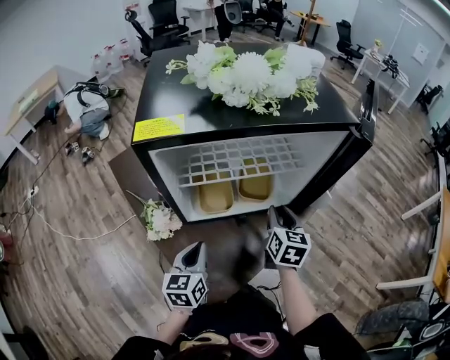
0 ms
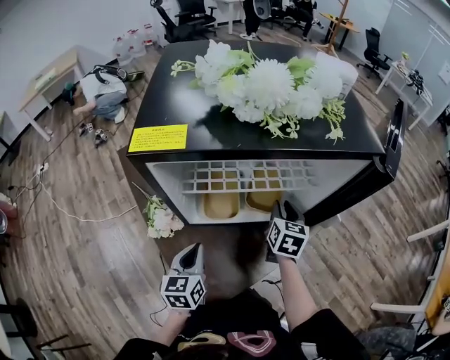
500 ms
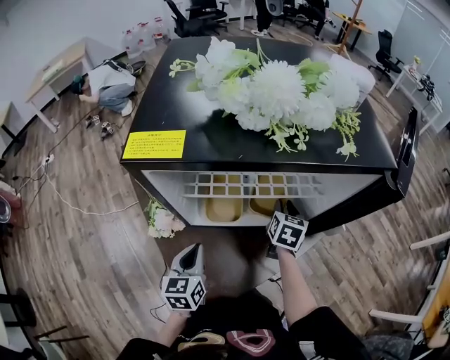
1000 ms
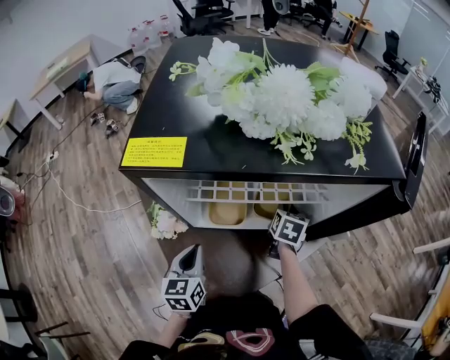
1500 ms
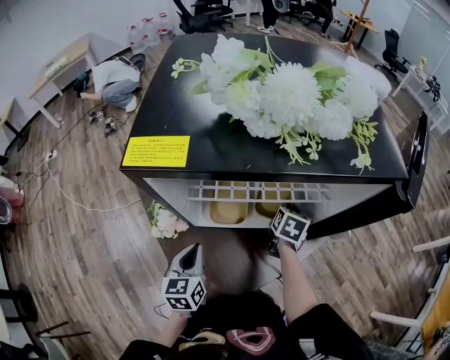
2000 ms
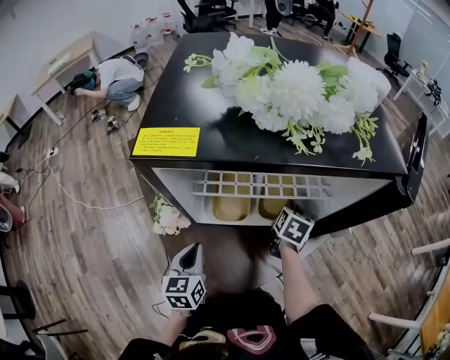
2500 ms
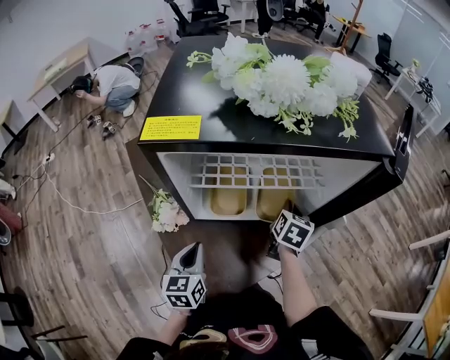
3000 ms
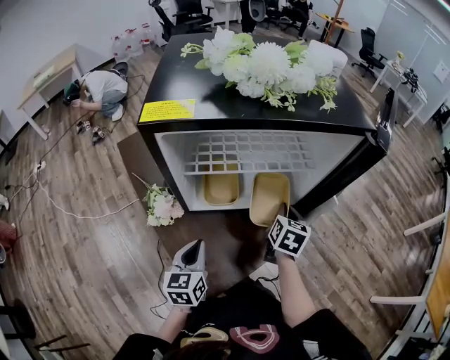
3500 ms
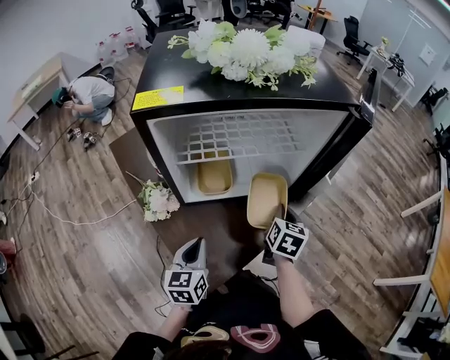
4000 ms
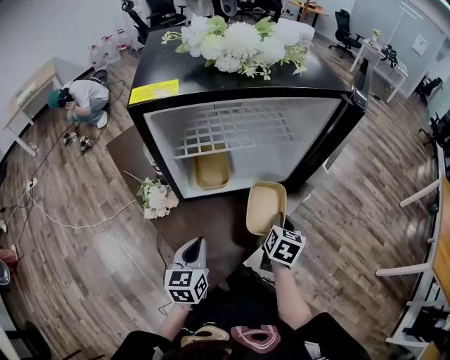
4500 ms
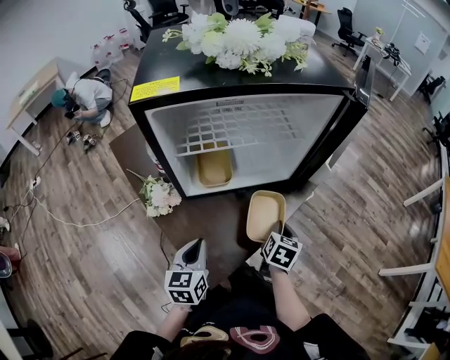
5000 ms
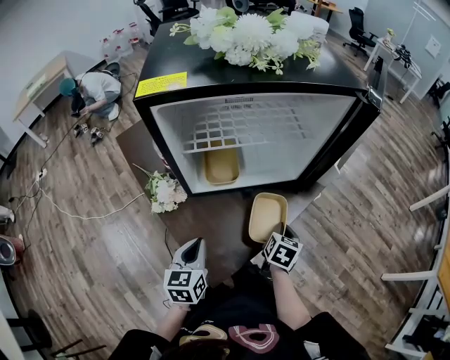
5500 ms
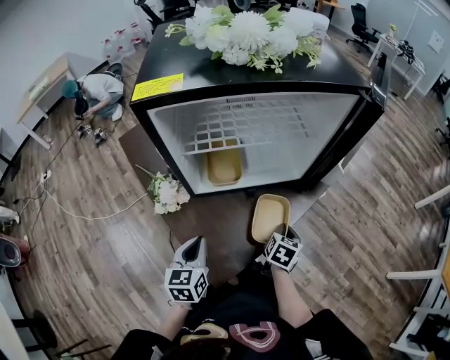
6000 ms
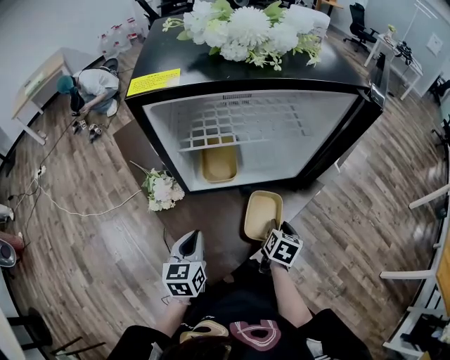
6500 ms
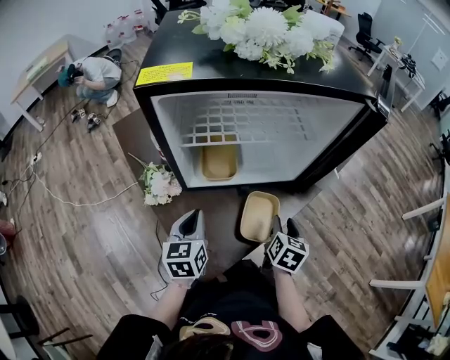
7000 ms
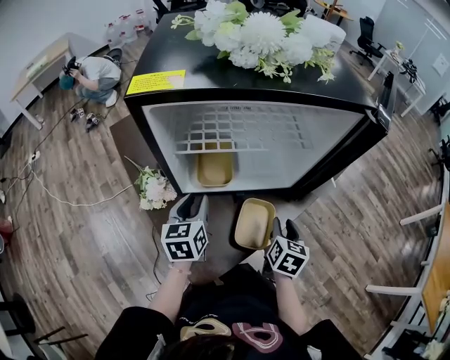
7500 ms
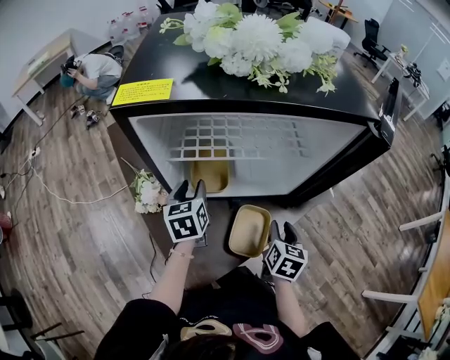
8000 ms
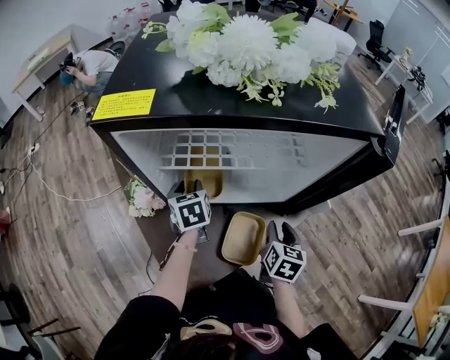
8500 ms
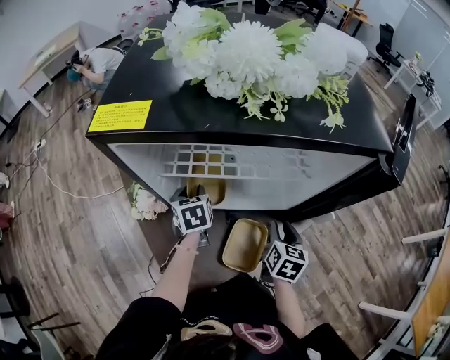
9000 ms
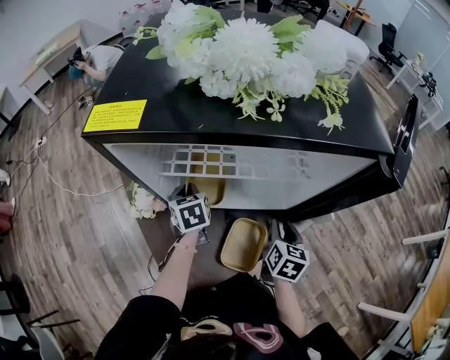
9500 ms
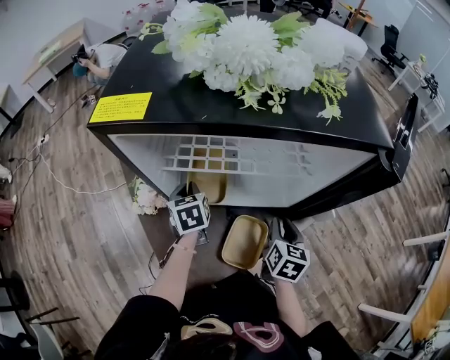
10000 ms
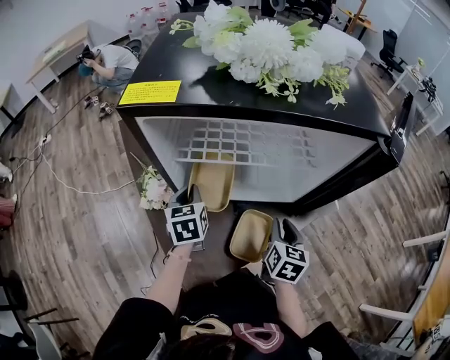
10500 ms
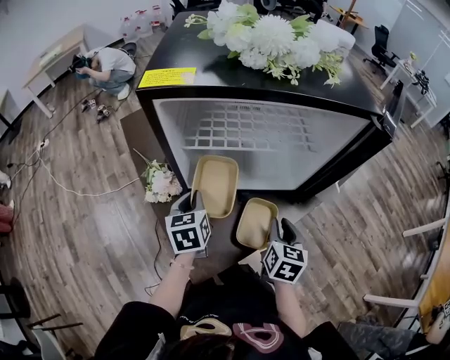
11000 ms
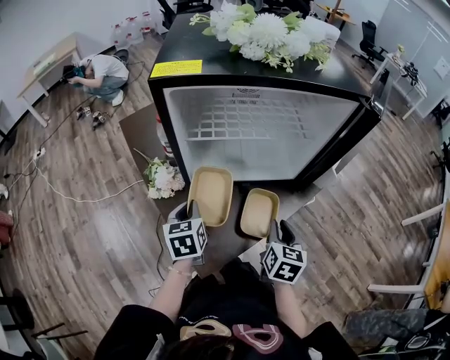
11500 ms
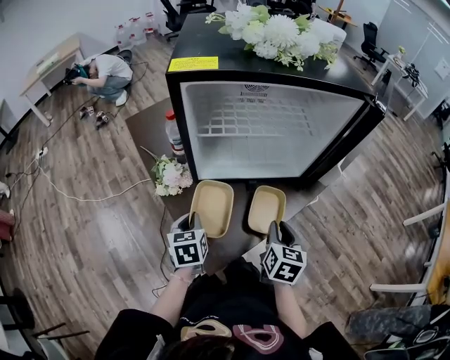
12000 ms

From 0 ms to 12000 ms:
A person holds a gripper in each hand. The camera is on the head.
From 0 ms to 2000 ms: The right gripper goes about 15 cm forward and downward, and closes.
From 2000 ms to 4000 ms: The left gripper travels backward by roughly 5 cm. Meanwhile the right gripper heads backward, covering some 15 cm.
From 4000 ms to 6000 ms: The right gripper shifts some 15 cm downward and backward.
From 6000 ms to 8000 ms: The left gripper travels forward by approximately 20 cm, and opens up, while the right gripper shifts roughly 10 cm upward and forward, and opens.
From 8000 ms to 10000 ms: The right gripper shifts roughly 5 cm forward. Meanwhile the left gripper shifts by approximately 5 cm, and closes its fingers.
From 10000 ms to 12000 ms: The right gripper heads backward and to the left, covering some 15 cm. Meanwhile the left gripper heads backward, covering roughly 20 cm.

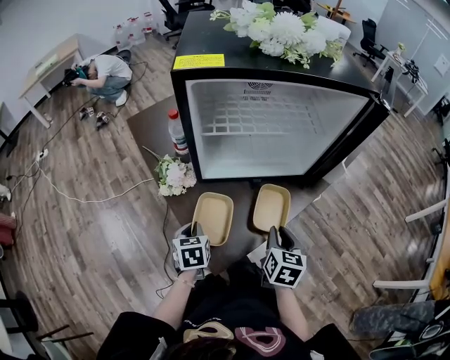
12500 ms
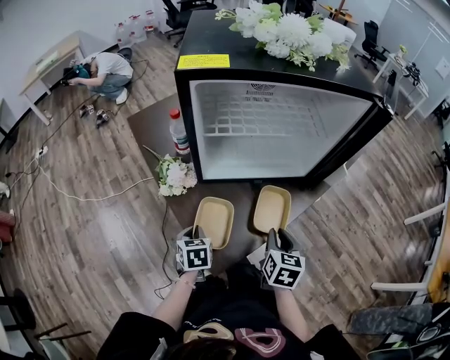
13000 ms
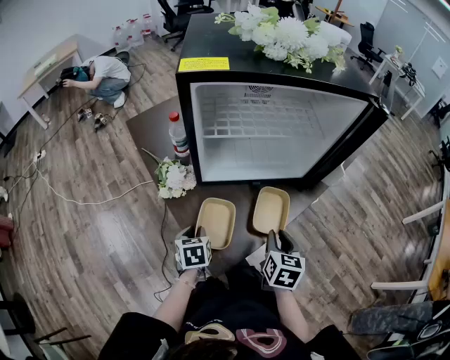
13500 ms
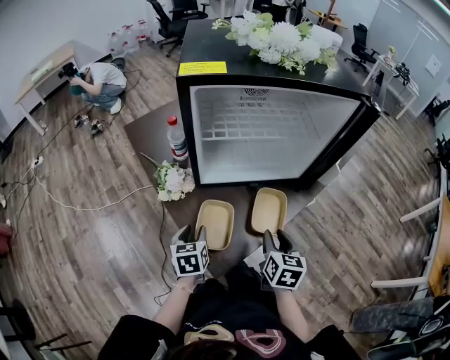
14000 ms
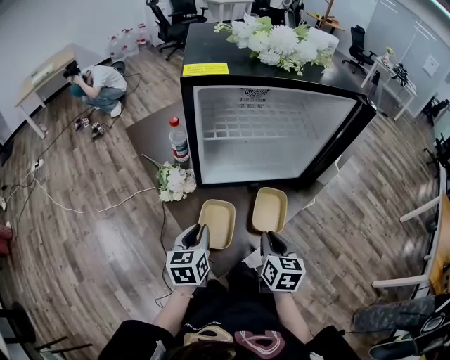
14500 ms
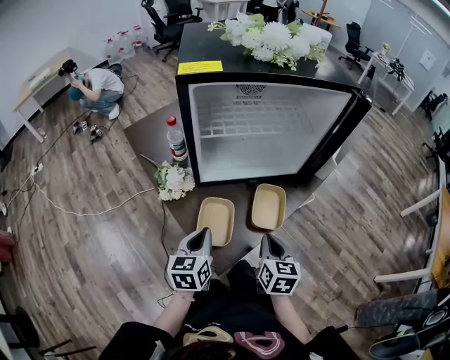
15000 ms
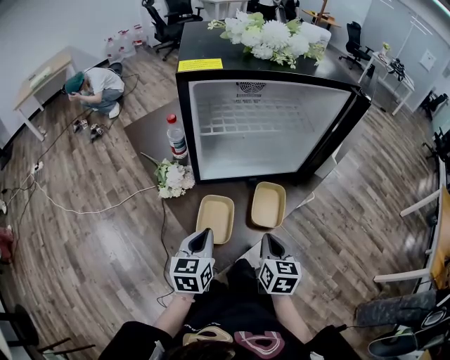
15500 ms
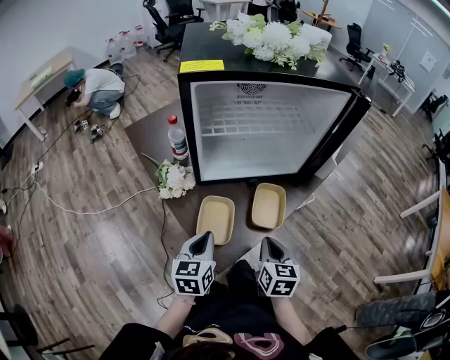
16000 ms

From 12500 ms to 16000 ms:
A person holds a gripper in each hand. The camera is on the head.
From 12500 ms to 14500 ms: The left gripper shifts some 10 cm upward, and rotates about 20 degrees.
From 14500 ms to 16000 ms: The grippers move only a little.

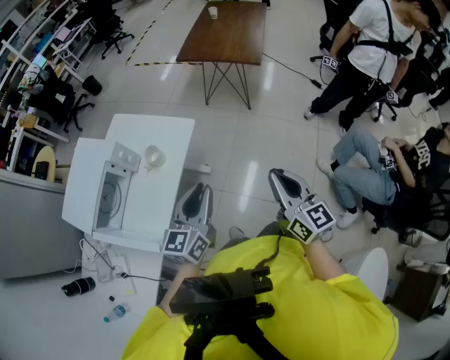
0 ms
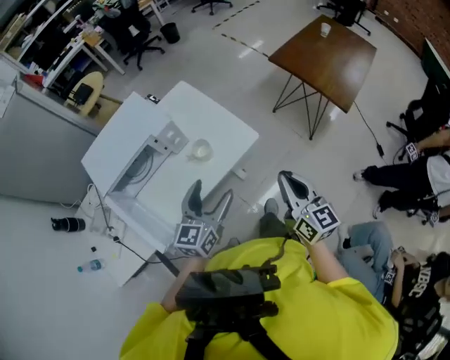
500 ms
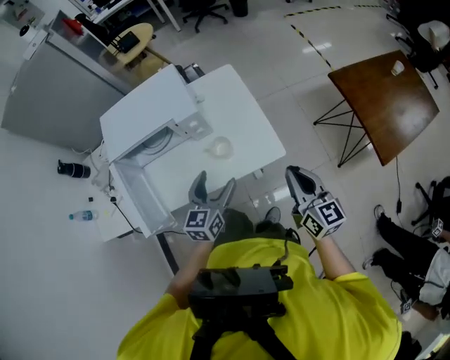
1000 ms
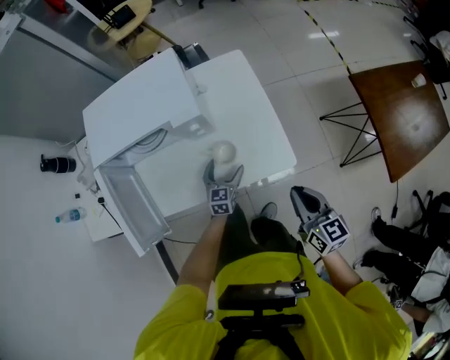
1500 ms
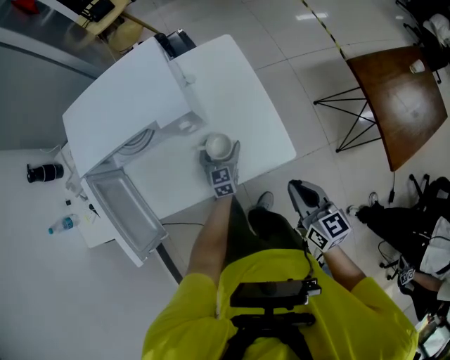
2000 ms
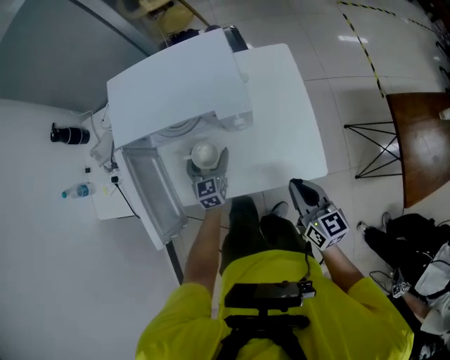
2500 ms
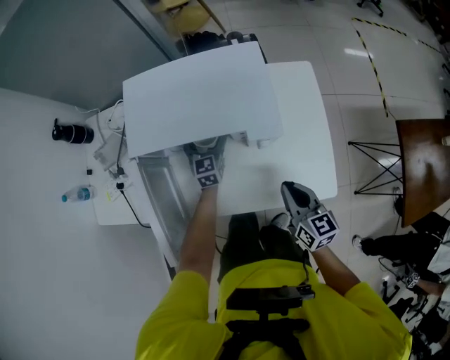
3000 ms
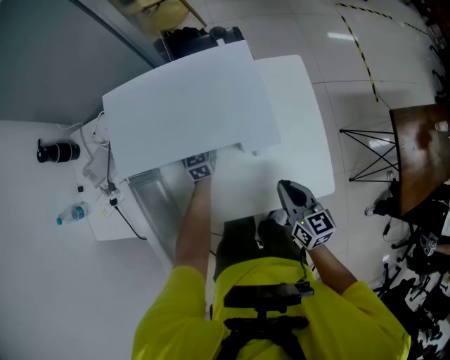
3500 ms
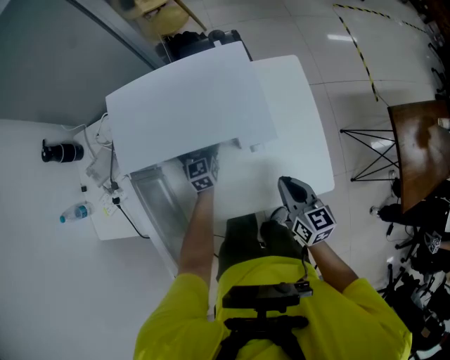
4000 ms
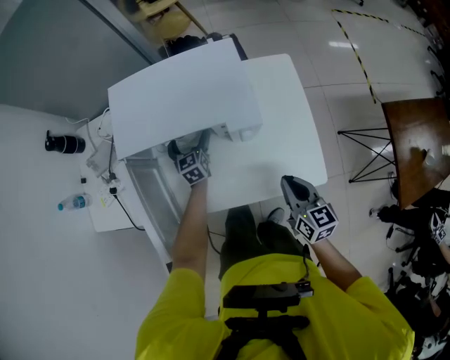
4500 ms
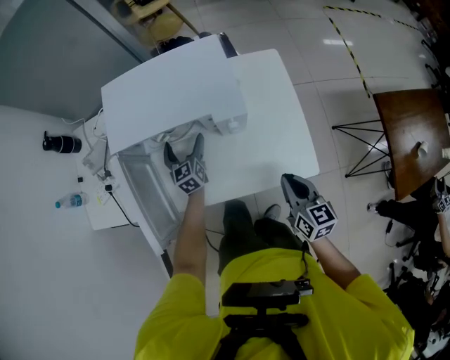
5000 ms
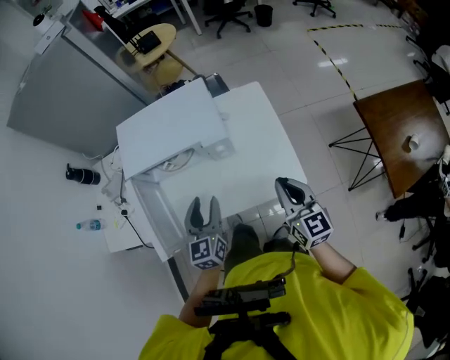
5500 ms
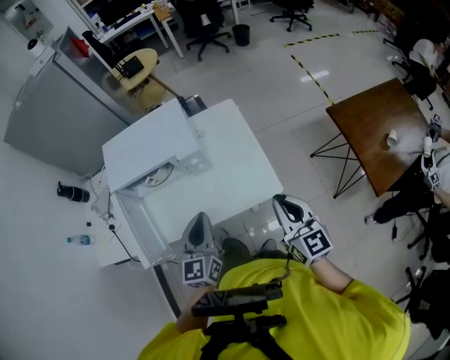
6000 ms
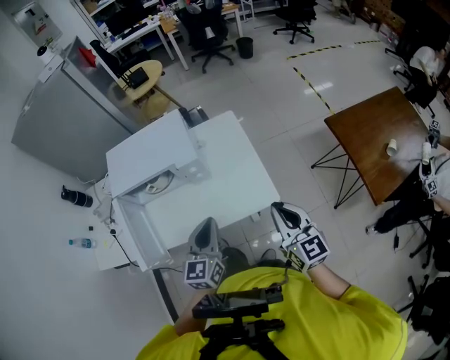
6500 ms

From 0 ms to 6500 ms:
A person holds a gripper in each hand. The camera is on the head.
From 0 ms to 2000 ms: The pair of grippers is taken some 40 cm. The right gripper turns by about 60 degrees, while the left gripper rotates about 70 degrees, and opens.
From 2000 ms to 4500 ms: The left gripper heads to the left and forward, covering about 30 cm, and turns by some 20 degrees, while the right gripper shifts approximately 15 cm forward and to the left.
From 4500 ms to 6500 ms: The right gripper is displaced upward, backward and to the right by roughly 25 cm, and rotates roughly 20 degrees, while the left gripper goes some 50 cm backward, upward and to the right, rotates approximately 30 degrees, and closes up.

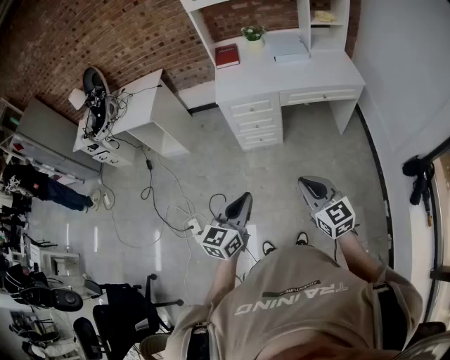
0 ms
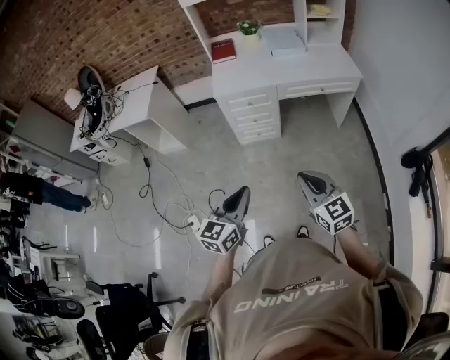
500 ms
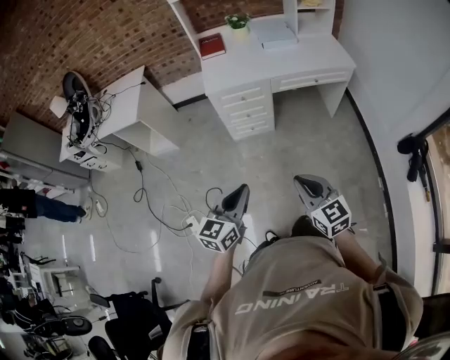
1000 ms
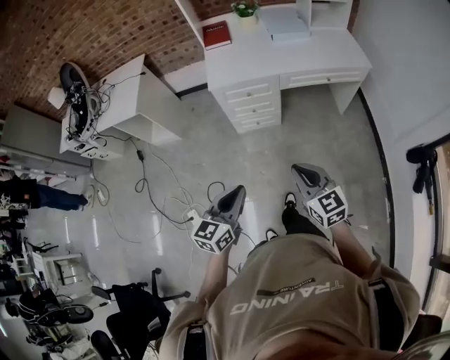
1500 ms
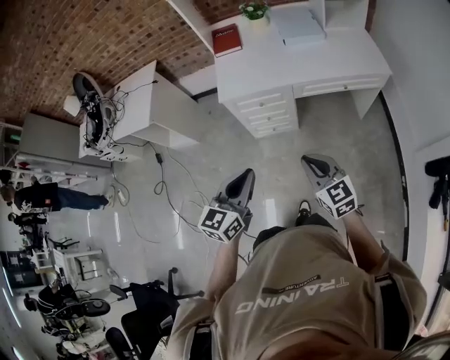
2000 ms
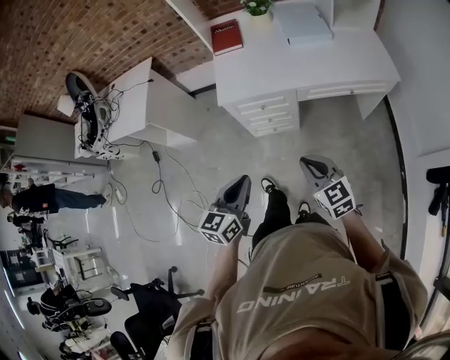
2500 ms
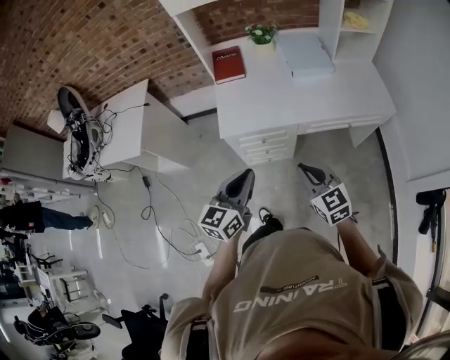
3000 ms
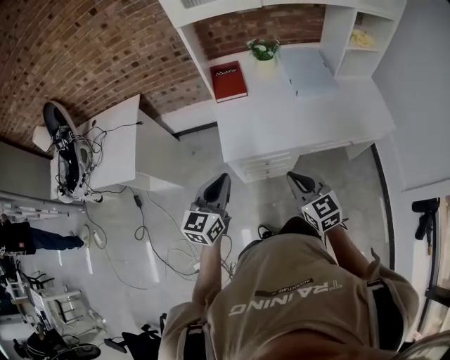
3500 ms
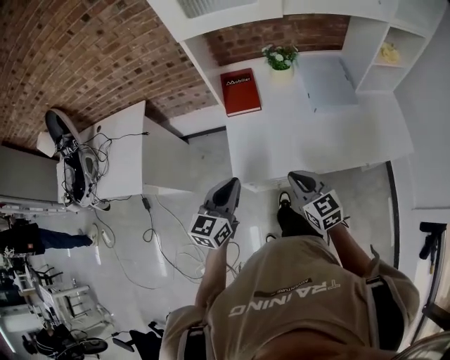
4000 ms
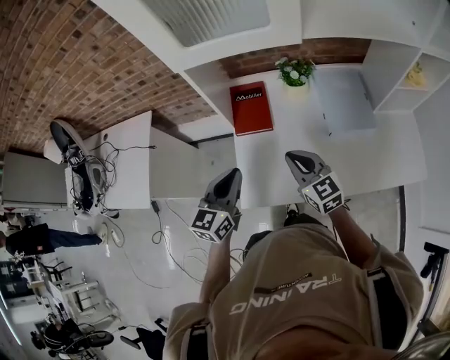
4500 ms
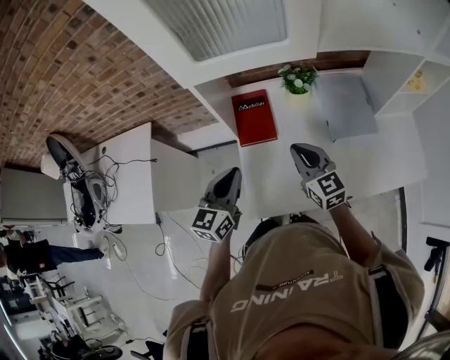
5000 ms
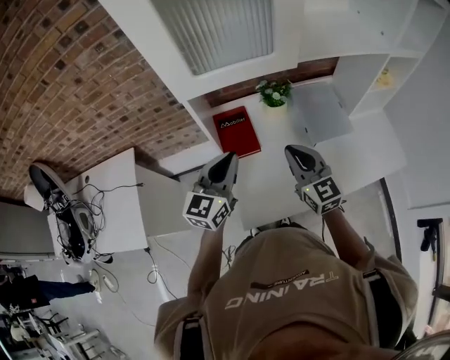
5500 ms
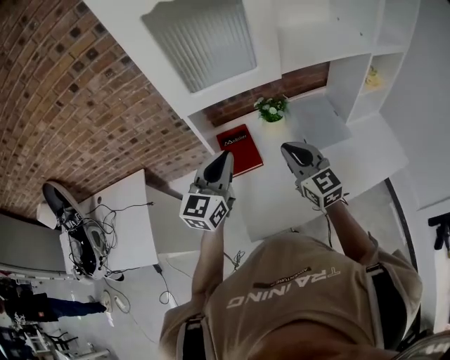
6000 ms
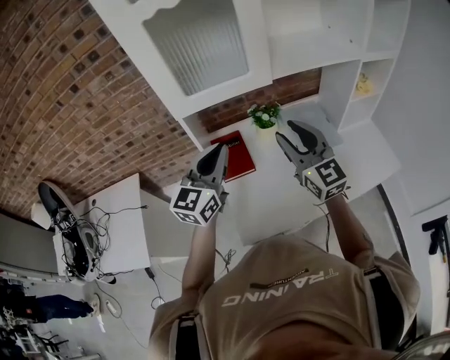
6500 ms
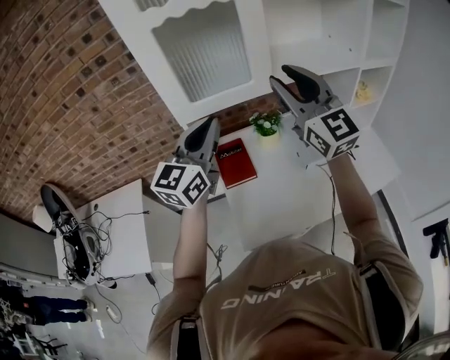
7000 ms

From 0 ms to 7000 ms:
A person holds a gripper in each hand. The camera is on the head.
From 0 ms to 2000 ms: Both grippers move forward, approximately 20 cm.
From 2000 ms to 3500 ms: The grippers both shift forward and to the left by about 30 cm.
From 3500 ms to 5000 ms: The grippers both shift forward by approximately 35 cm.
From 5000 ms to 7000 ms: Both grippers move upward, about 30 cm. The left gripper rotates about 30 degrees. The right gripper angles its fingers upward, by approximately 30 degrees, and opens up.
